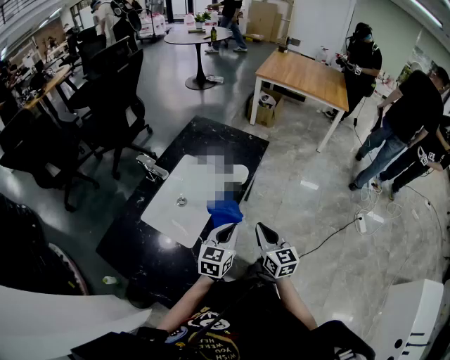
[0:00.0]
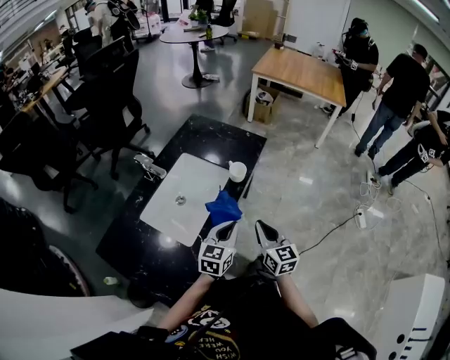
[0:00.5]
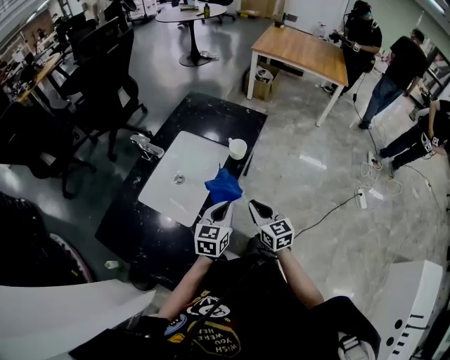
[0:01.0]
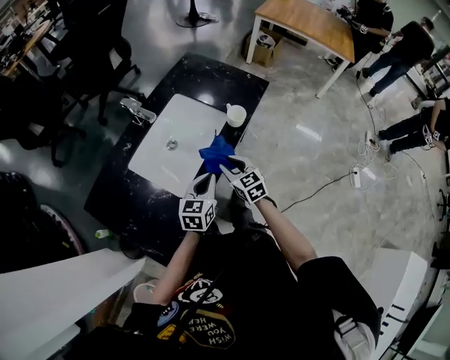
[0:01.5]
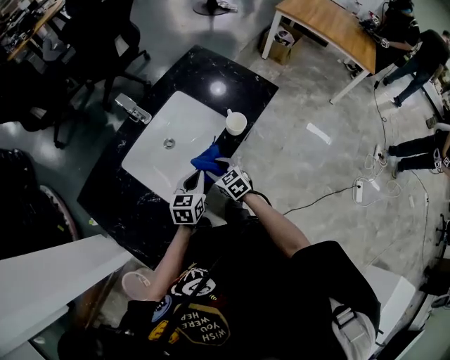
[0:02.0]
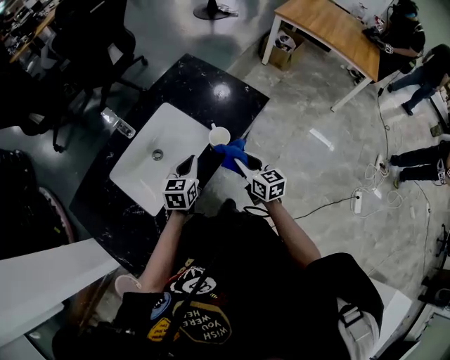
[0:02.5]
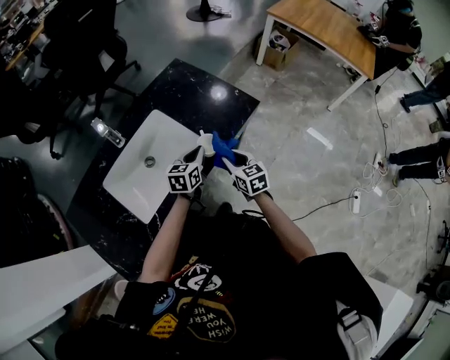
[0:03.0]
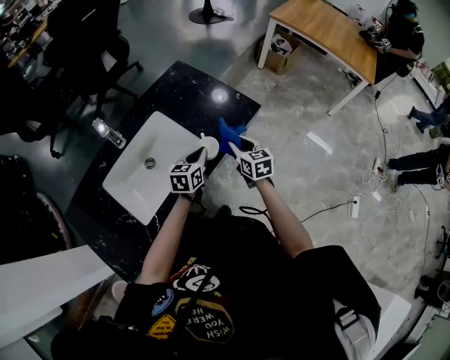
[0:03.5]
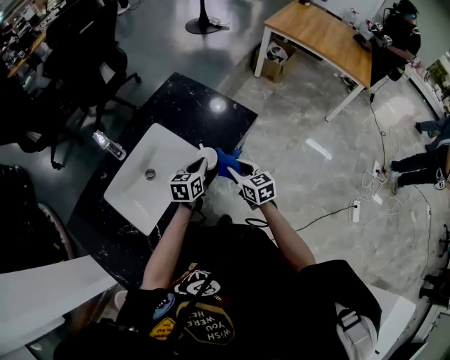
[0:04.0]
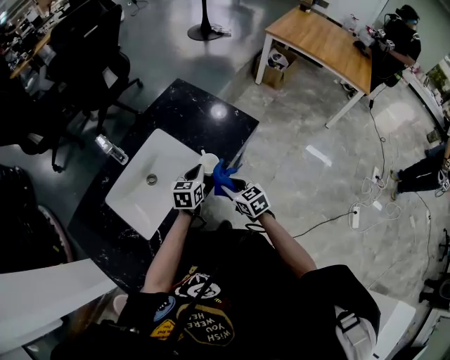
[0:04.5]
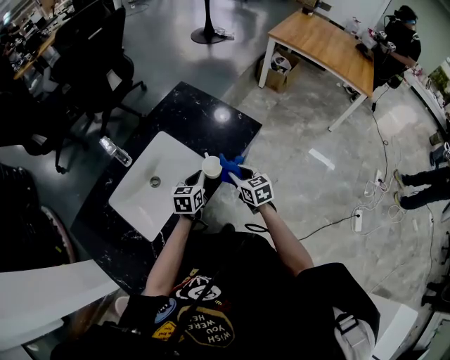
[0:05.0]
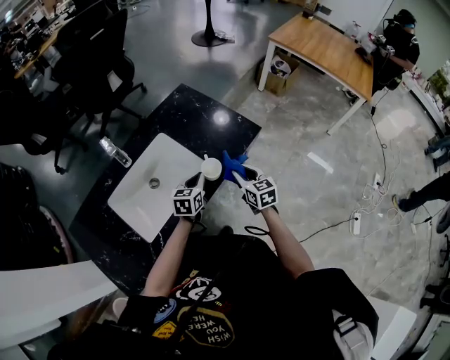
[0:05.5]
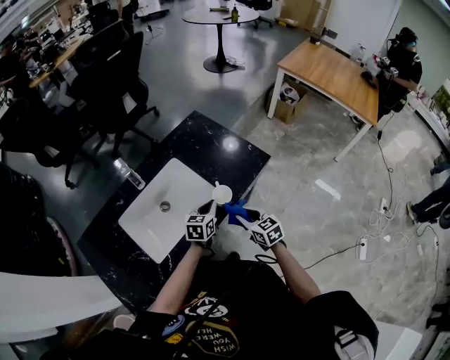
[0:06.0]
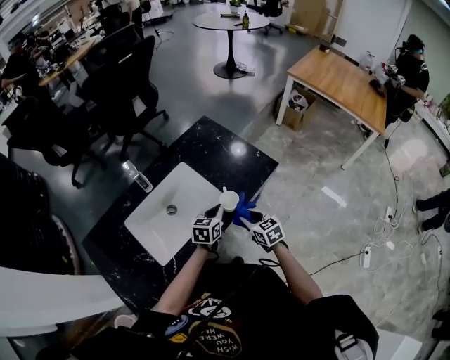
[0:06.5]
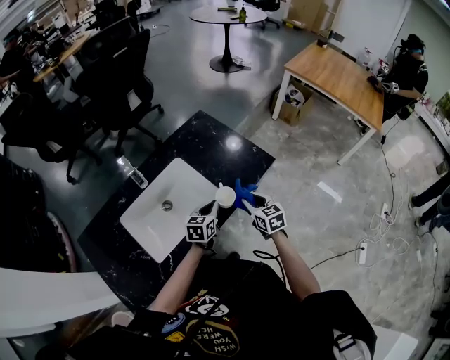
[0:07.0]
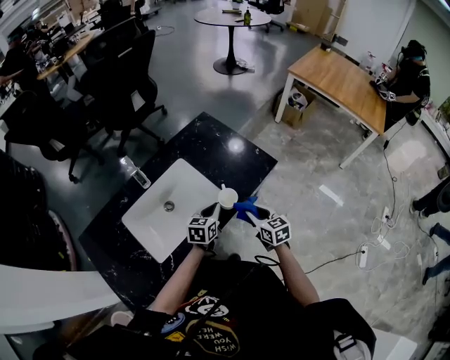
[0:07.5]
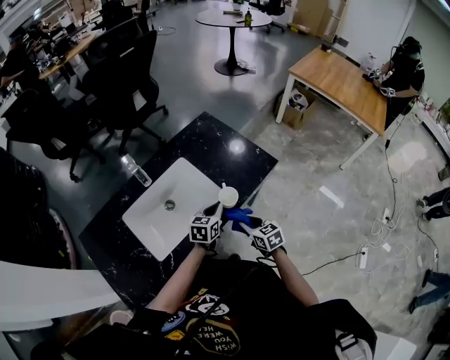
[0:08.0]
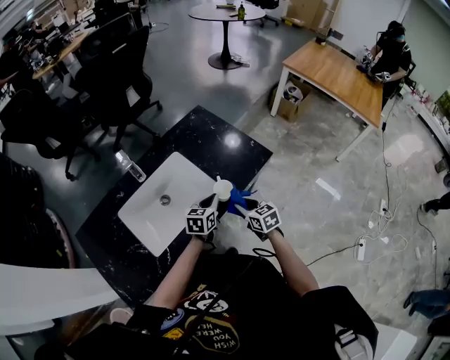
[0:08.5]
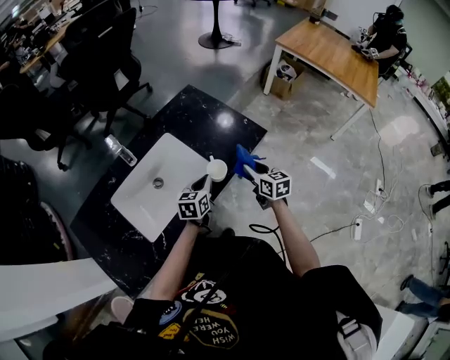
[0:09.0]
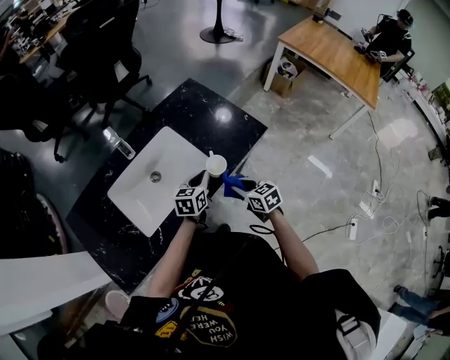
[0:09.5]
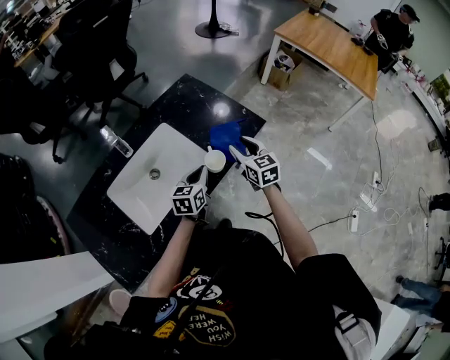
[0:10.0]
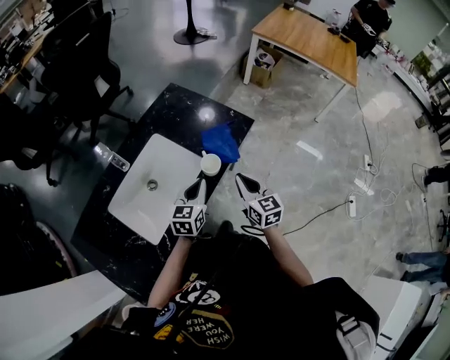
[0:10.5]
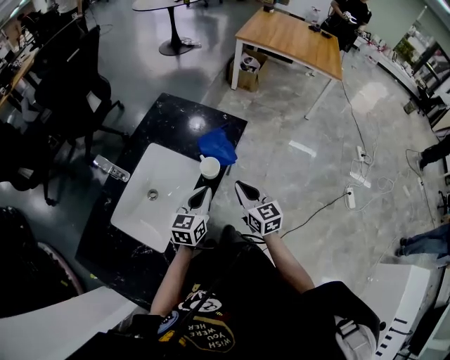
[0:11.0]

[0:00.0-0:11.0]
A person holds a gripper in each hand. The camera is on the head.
0:00.0 to 0:02.0: The right gripper shifts some 20 cm downward, swivels approximately 50 degrees, and opens its fingers. Meanwhile the left gripper ends up roughly 15 cm from where it was, and changes its angle by approximately 20 degrees.
0:02.0 to 0:03.5: The left gripper goes some 20 cm forward and to the right. The right gripper goes roughly 25 cm to the right and forward, and rotates roughly 30 degrees.
0:03.5 to 0:05.5: The right gripper goes backward and returns, approximately 10 cm each way.
0:07.5 to 0:09.0: The right gripper heads forward, covering some 5 cm.
0:09.0 to 0:11.0: The left gripper goes some 10 cm upward, and changes its angle by some 20 degrees. Meanwhile the right gripper ends up roughly 15 cm from where it was, and closes up.

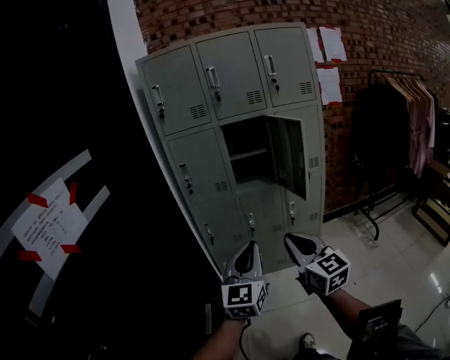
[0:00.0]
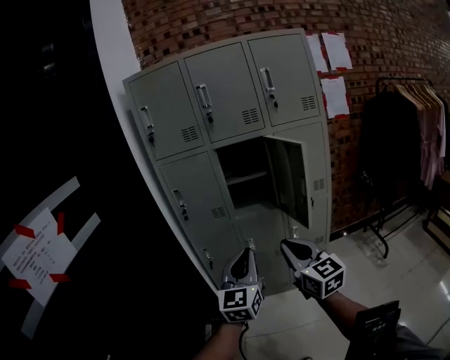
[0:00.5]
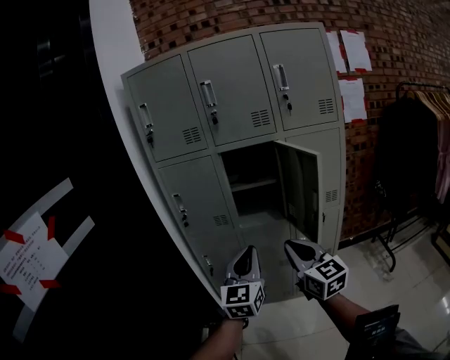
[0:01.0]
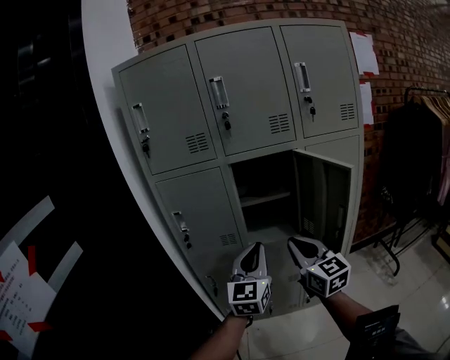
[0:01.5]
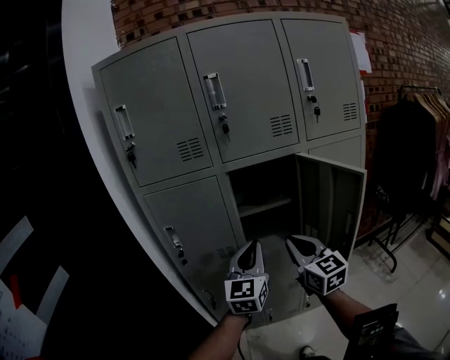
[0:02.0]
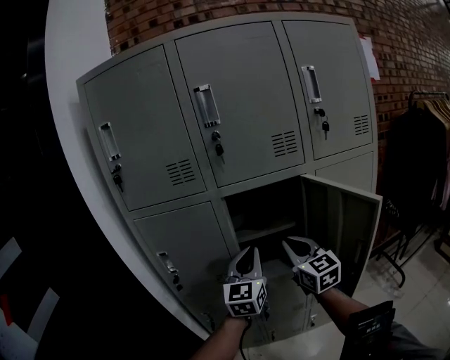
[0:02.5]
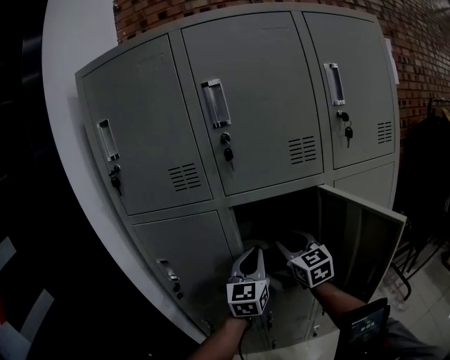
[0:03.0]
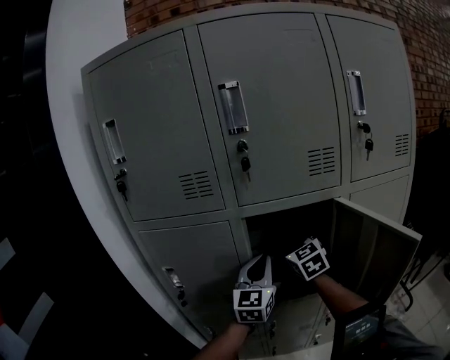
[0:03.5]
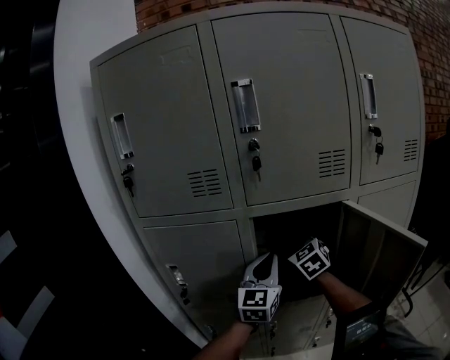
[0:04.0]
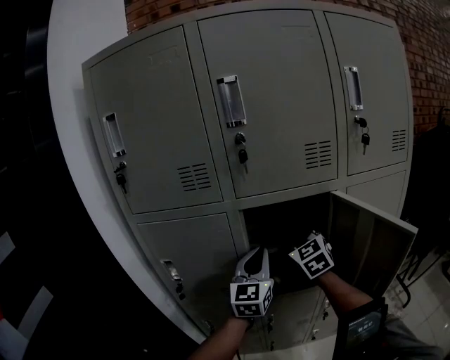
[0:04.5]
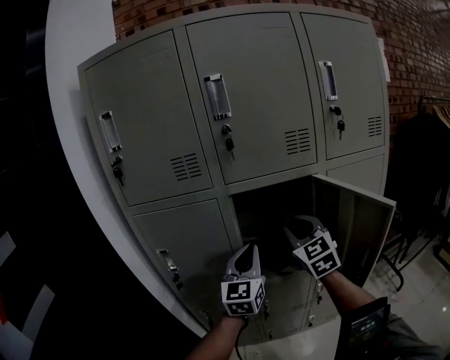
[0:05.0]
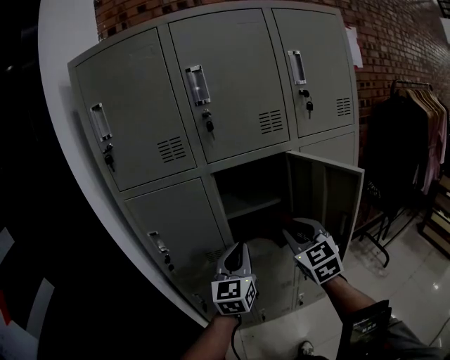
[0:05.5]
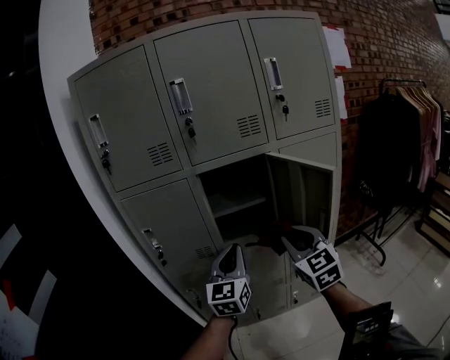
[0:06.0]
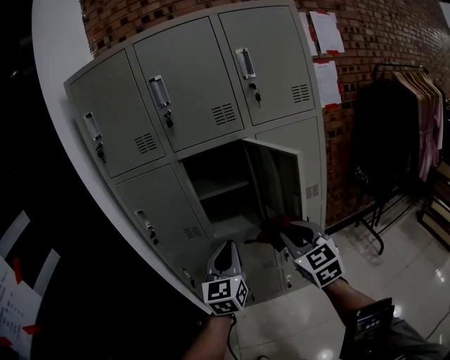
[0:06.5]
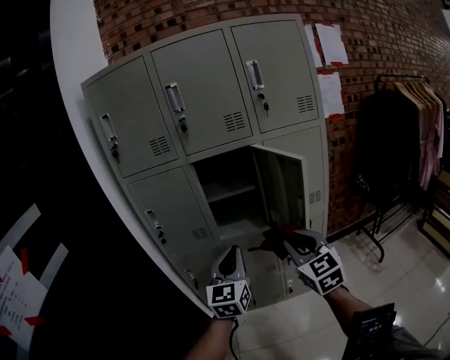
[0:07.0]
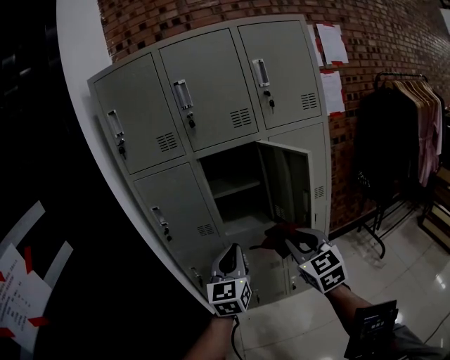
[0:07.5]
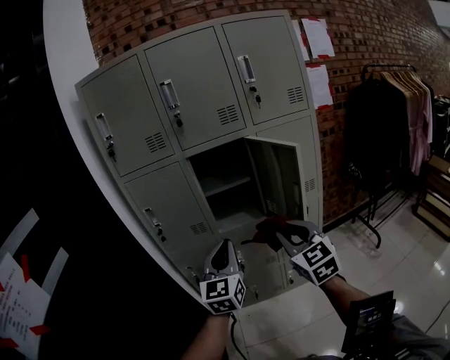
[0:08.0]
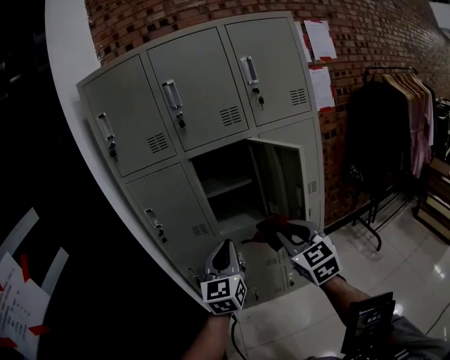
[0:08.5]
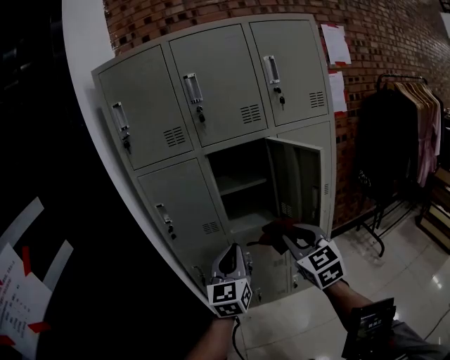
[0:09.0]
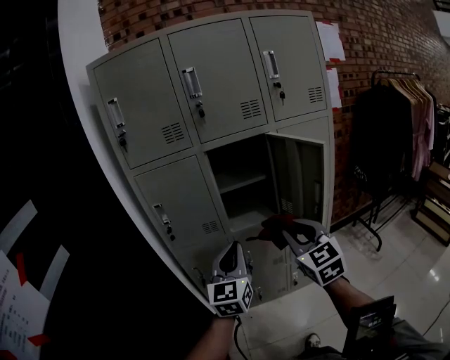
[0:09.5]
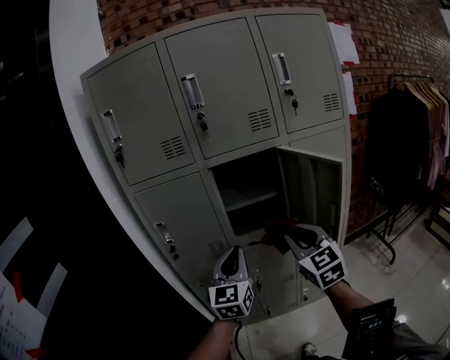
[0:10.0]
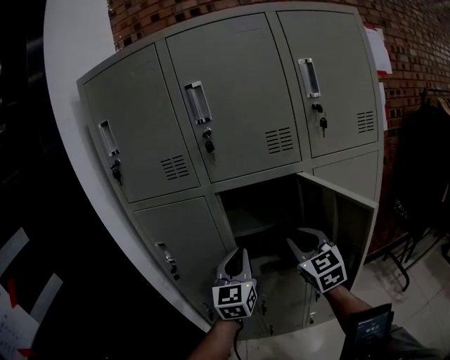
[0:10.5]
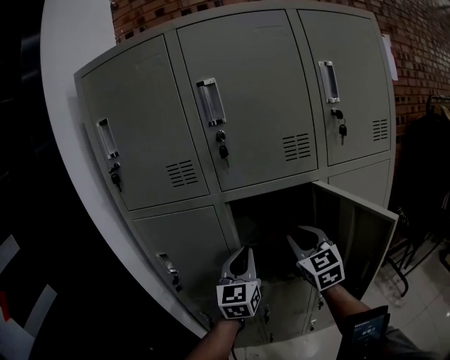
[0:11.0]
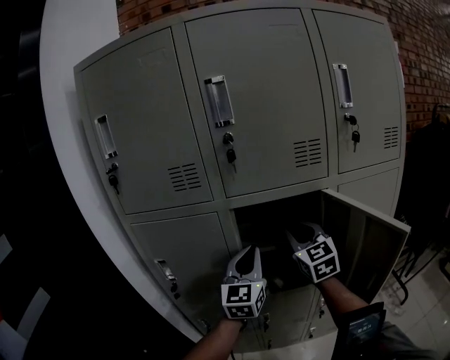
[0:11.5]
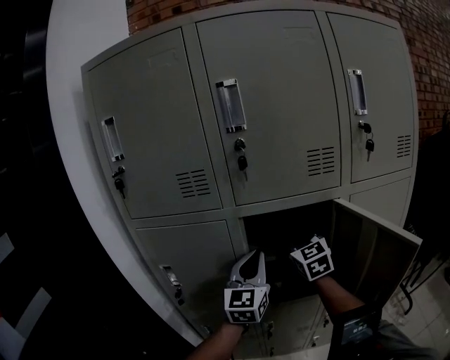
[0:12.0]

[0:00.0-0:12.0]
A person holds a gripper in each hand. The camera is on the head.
0:00.0 to 0:02.0: Both grippers are carried forward, roughly 40 cm.
0:02.0 to 0:04.0: The right gripper travels forward by roughly 30 cm, rotates roughly 40 degrees, and opens. Meanwhile the left gripper is displaced forward by about 20 cm.
0:04.0 to 0:06.0: The left gripper shifts roughly 20 cm backward; the right gripper travels backward by about 30 cm, and turns by approximately 20 degrees.
0:06.0 to 0:08.0: Both grippers move backward, some 15 cm.
0:08.0 to 0:10.0: The two grippers go approximately 10 cm forward.
0:10.0 to 0:12.0: Both grippers travel together forward, some 25 cm.

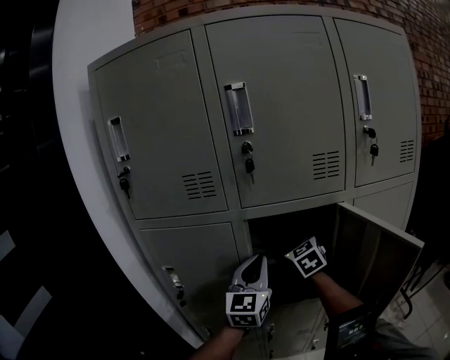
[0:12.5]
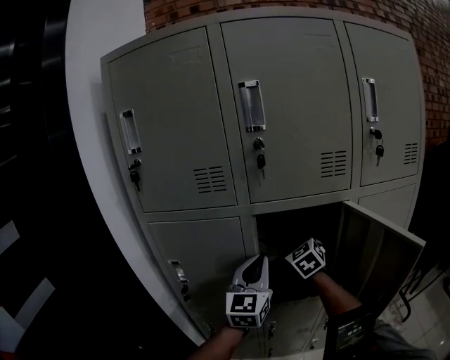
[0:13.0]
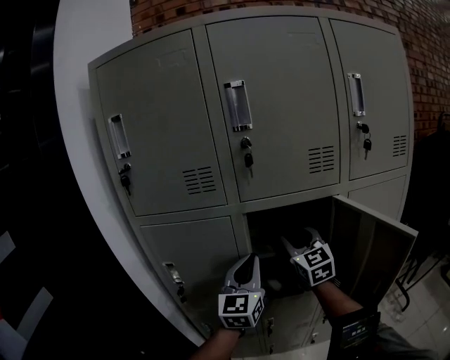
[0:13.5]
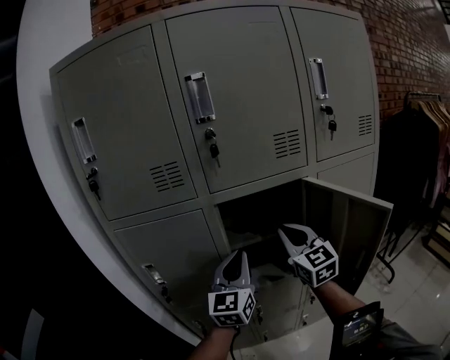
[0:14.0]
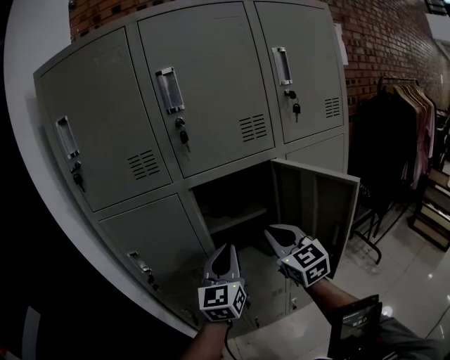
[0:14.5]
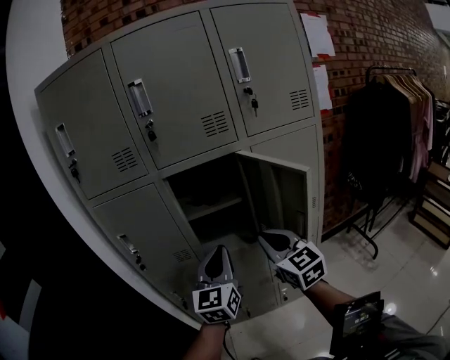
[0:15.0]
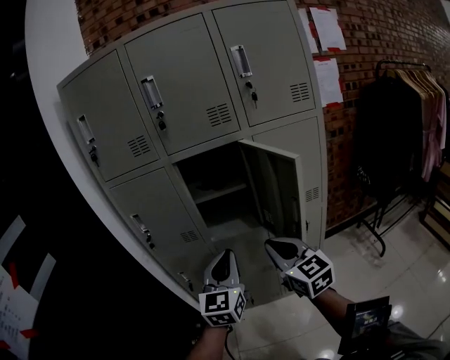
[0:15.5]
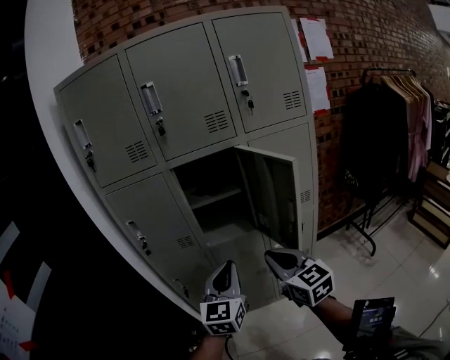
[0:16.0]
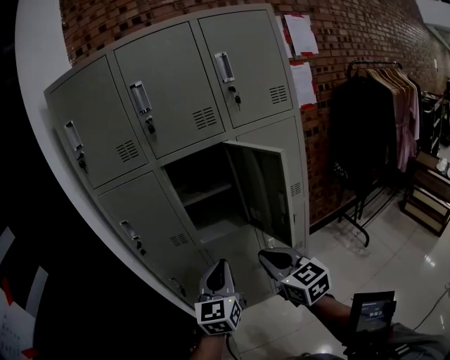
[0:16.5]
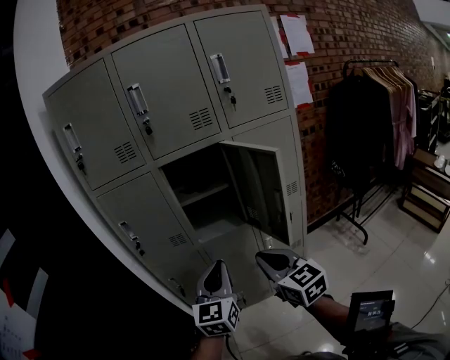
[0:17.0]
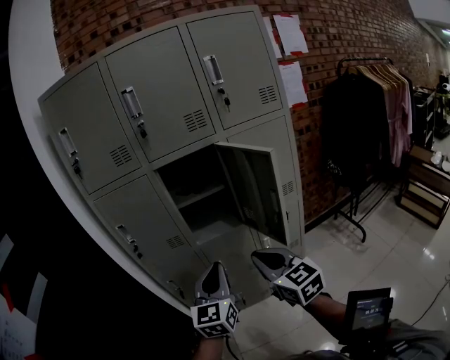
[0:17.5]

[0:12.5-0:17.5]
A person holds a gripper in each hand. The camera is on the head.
0:12.5 to 0:15.0: The right gripper shifts about 30 cm backward, and turns by some 20 degrees; the left gripper heads backward and to the right, covering about 20 cm.
0:15.0 to 0:17.5: Both grippers travel together backward, roughly 15 cm.
